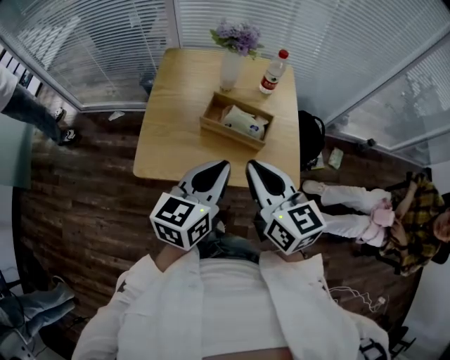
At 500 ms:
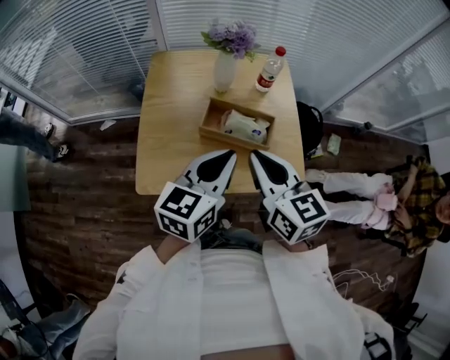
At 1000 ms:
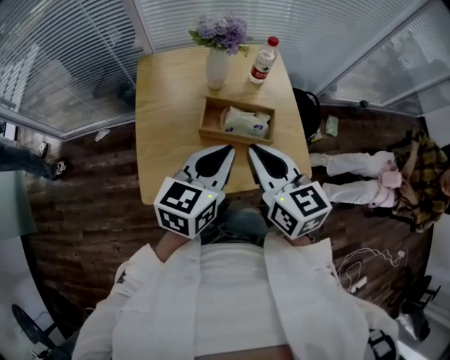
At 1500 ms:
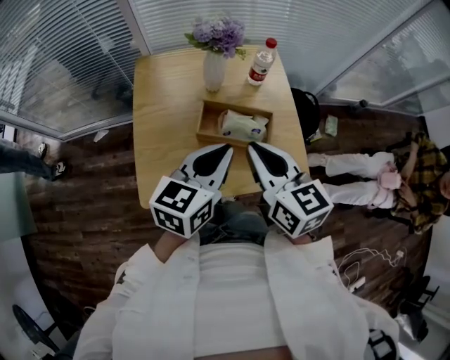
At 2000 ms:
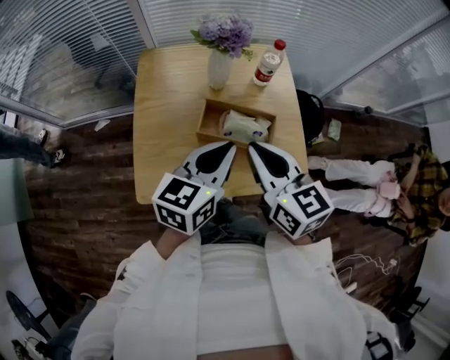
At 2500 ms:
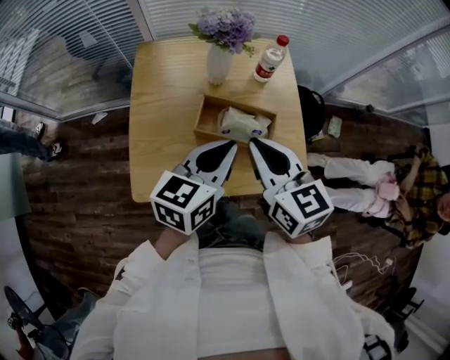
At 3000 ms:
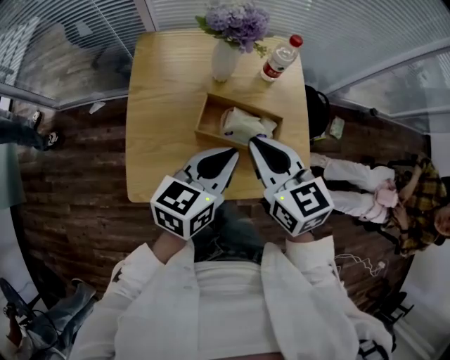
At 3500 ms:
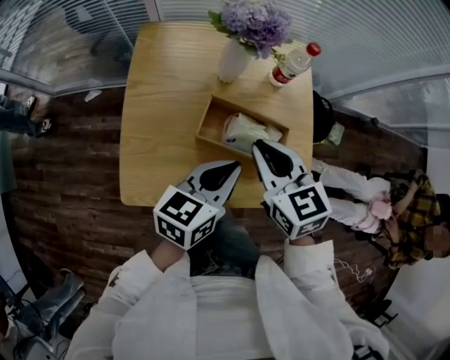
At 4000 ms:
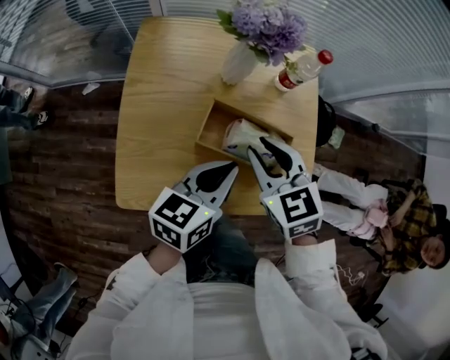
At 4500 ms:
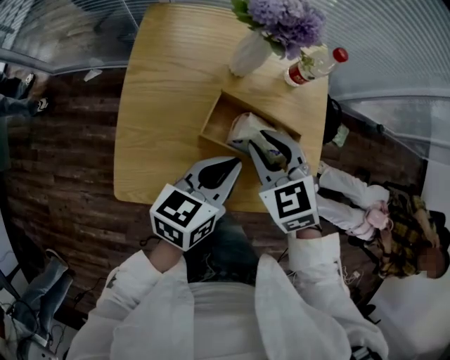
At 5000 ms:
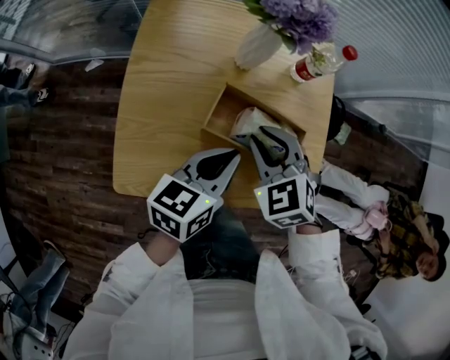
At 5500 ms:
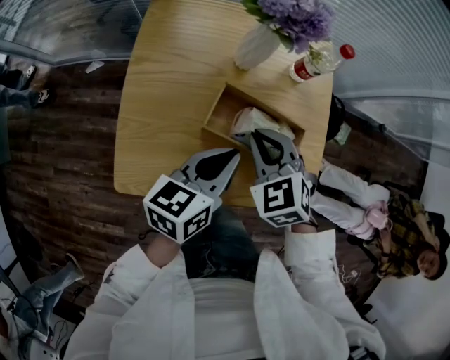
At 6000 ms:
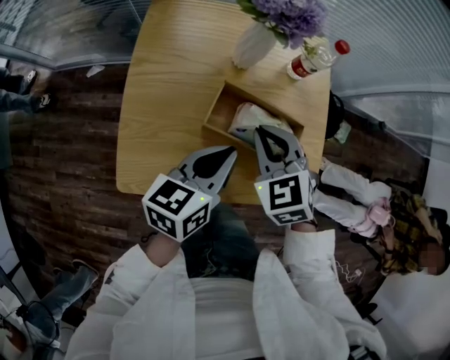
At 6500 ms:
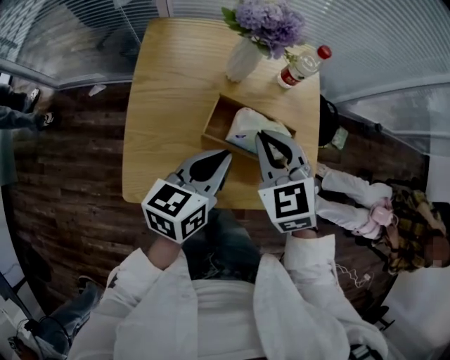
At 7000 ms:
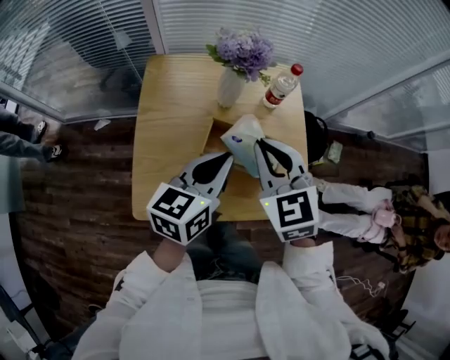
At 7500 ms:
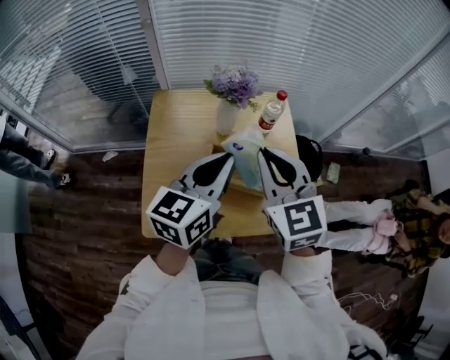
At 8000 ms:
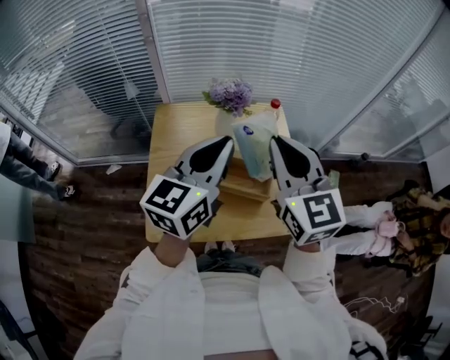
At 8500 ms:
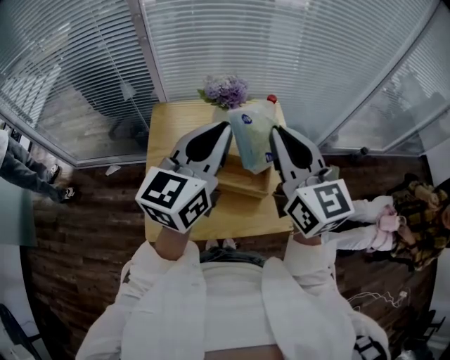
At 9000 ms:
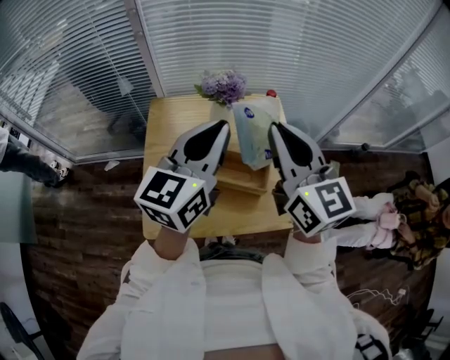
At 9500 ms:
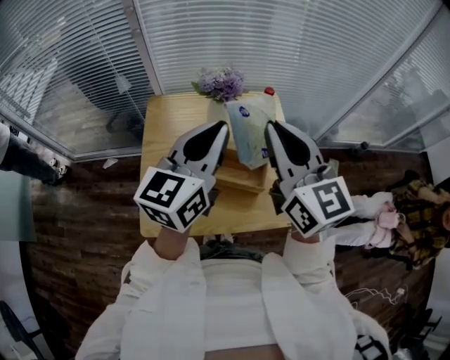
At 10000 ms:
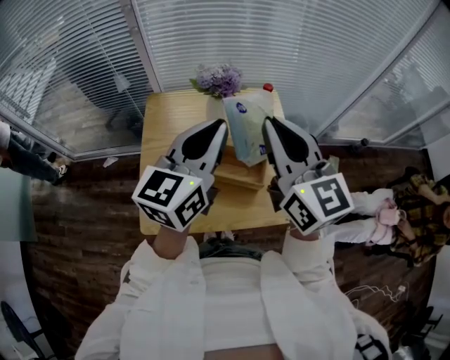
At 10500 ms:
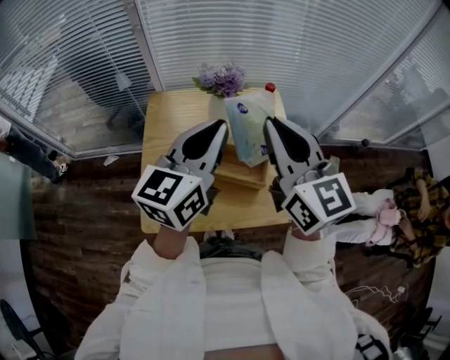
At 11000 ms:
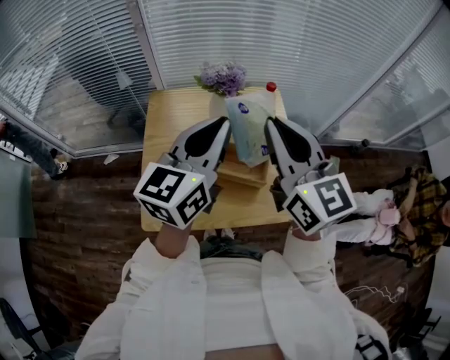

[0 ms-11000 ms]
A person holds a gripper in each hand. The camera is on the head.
0 ms to 2000 ms: The grippers both shift forward by some 10 cm.
2000 ms to 3500 ms: The left gripper travels downward by roughly 5 cm; the right gripper goes roughly 10 cm downward and forward.
3500 ms to 5500 ms: The right gripper goes some 5 cm downward, and swivels approximately 30 degrees.
5500 ms to 7500 ms: The grippers both shift upward by roughly 20 cm. The right gripper angles its fingers upward, by approximately 30 degrees. The left gripper swivels about 20 degrees.
7500 ms to 9000 ms: Both grippers travel together upward, some 10 cm. The right gripper rotates some 20 degrees.
9000 ms to 11000 ms: The grippers stay close to where they were, moving slightly.

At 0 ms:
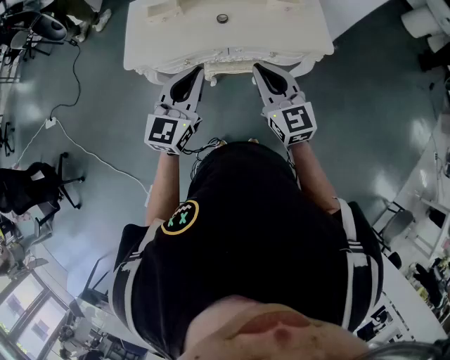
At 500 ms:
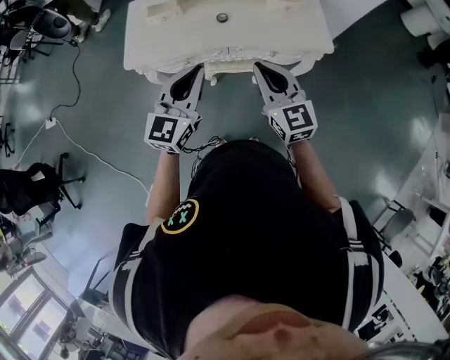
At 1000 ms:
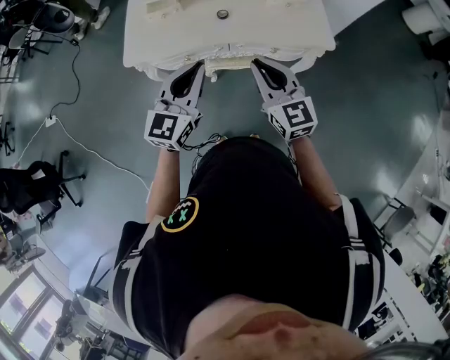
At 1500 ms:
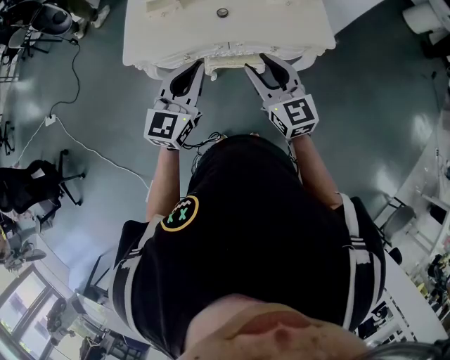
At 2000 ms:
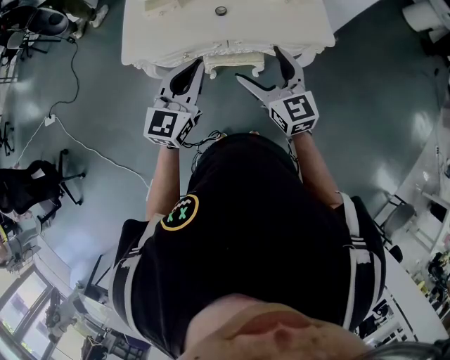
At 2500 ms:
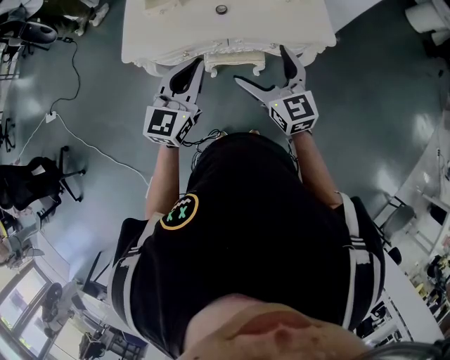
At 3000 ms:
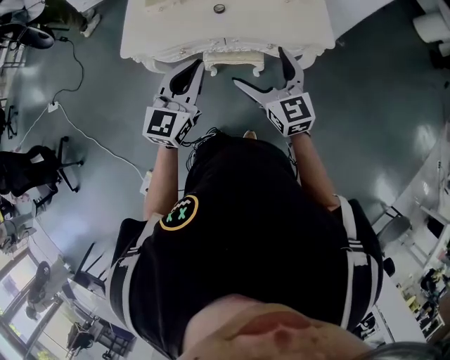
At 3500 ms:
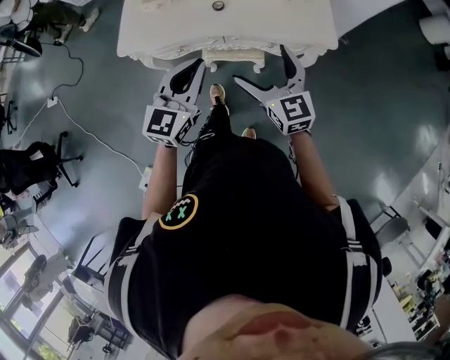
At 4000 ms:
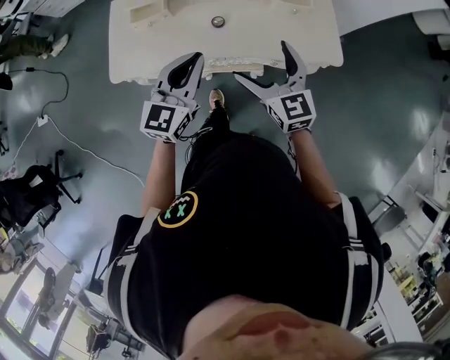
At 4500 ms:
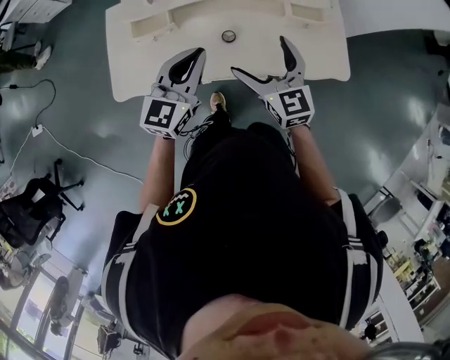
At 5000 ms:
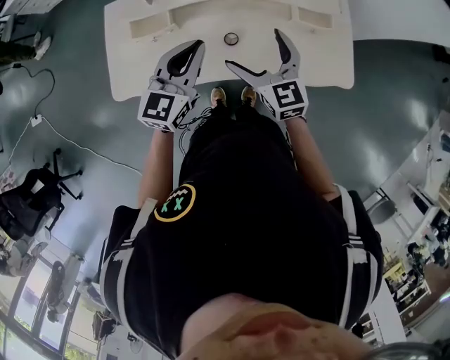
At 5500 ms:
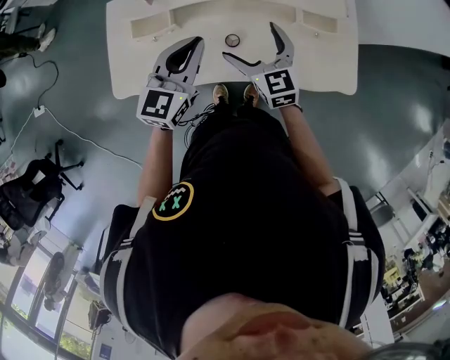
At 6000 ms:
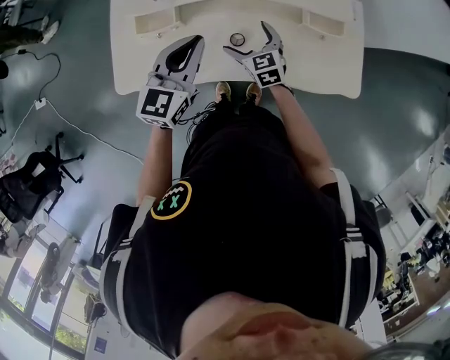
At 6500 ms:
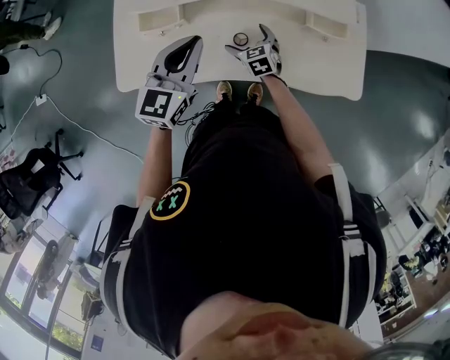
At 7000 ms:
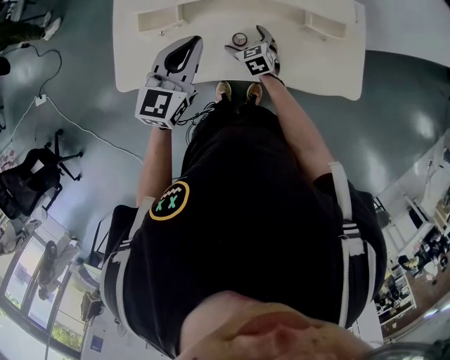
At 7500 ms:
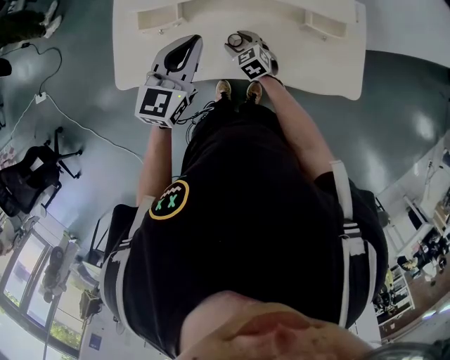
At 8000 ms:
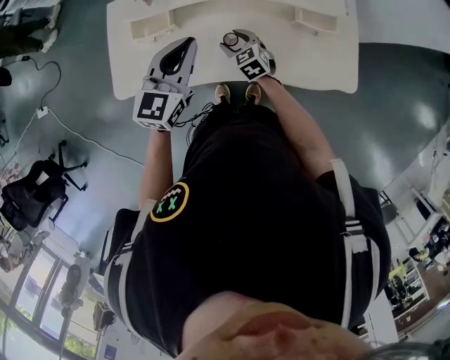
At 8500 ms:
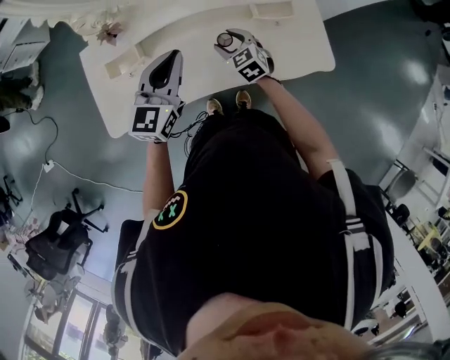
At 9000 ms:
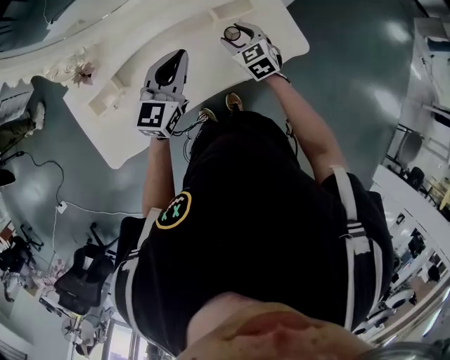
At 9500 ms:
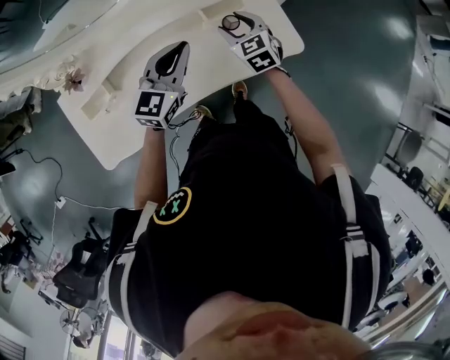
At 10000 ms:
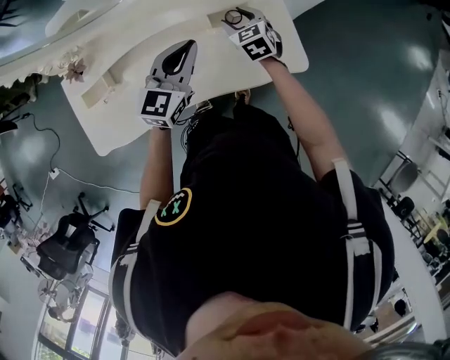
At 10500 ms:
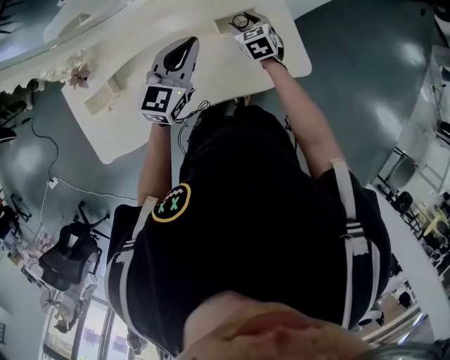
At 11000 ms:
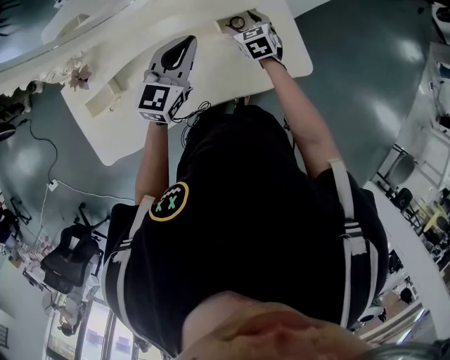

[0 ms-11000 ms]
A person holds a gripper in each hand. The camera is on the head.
0 ms to 2000 ms: The right gripper opens up.
2000 ms to 3500 ms: There are only small adjustments of the grippers.
3500 ms to 5500 ms: The two grippers go some 30 cm forward.
5500 ms to 7500 ms: The right gripper heads downward, covering about 20 cm, changes its angle by some 30 degrees, and closes its fingers.
7500 ms to 9000 ms: The right gripper changes place by approximately 25 cm, and swivels roughly 30 degrees, while the left gripper shifts by some 15 cm, and changes its angle by roughly 20 degrees.
9000 ms to 11000 ms: The grippers both shift forward by approximately 10 cm.

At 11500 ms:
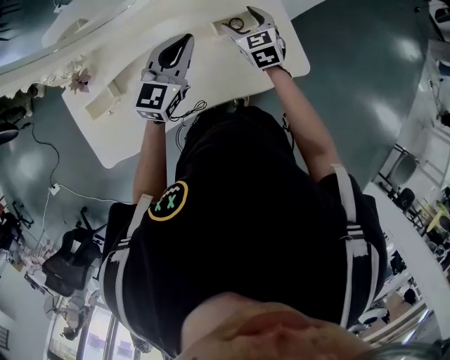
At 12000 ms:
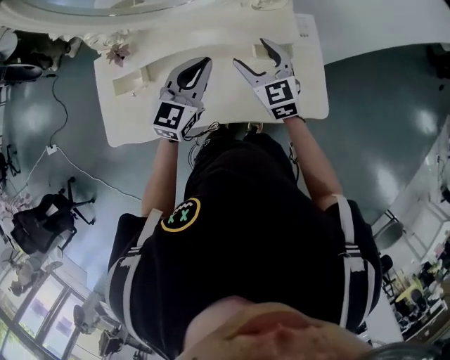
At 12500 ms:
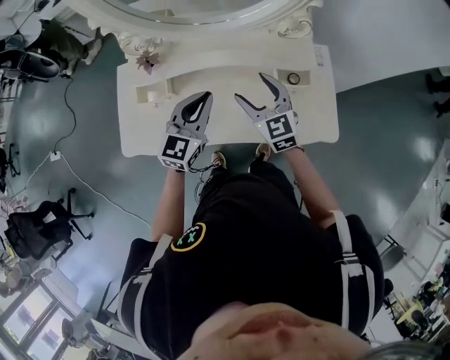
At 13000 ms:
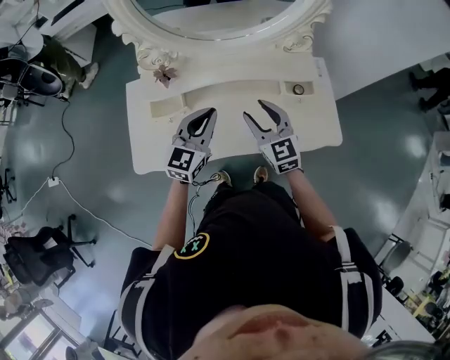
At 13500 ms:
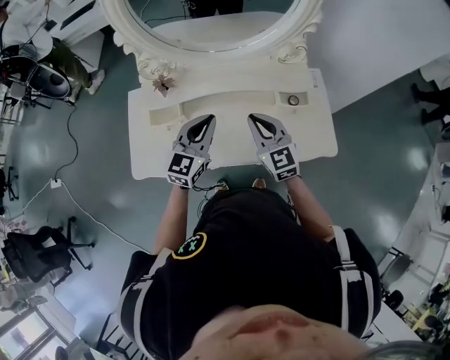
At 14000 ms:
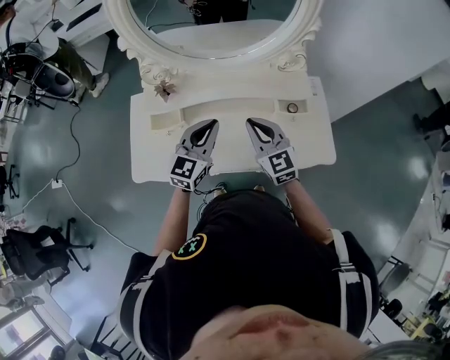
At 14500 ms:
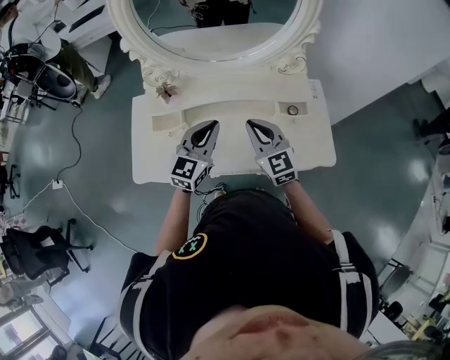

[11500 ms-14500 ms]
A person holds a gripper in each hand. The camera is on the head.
11500 ms to 13000 ms: The left gripper goes roughly 25 cm to the left and backward; the right gripper travels to the left, backward and upward by about 30 cm, and rotates about 20 degrees.
13000 ms to 14500 ms: The right gripper closes up.

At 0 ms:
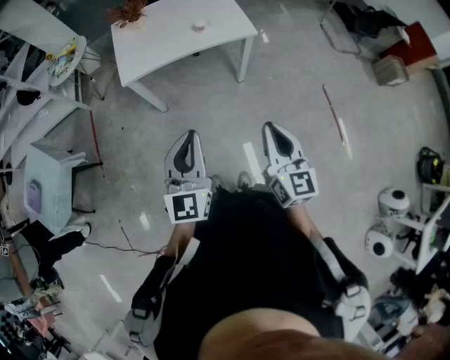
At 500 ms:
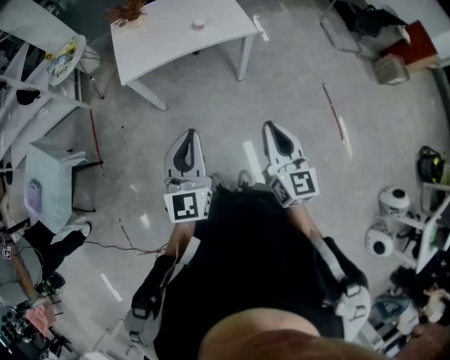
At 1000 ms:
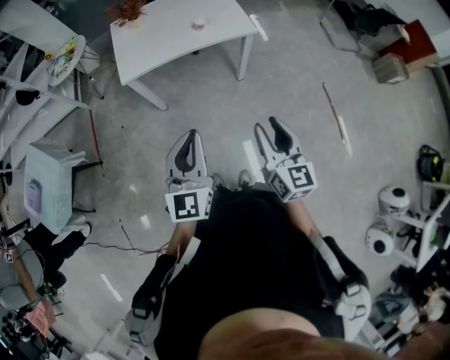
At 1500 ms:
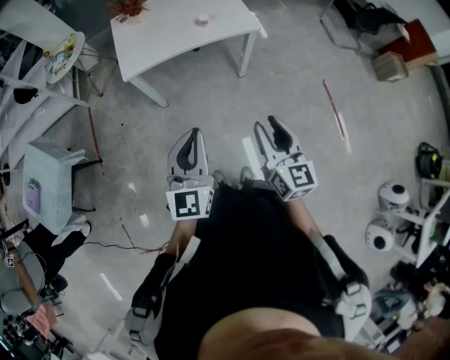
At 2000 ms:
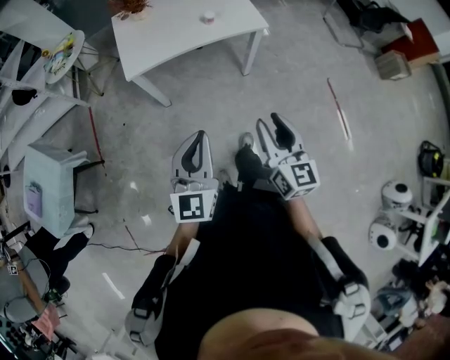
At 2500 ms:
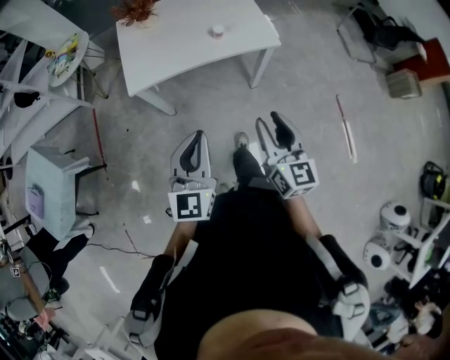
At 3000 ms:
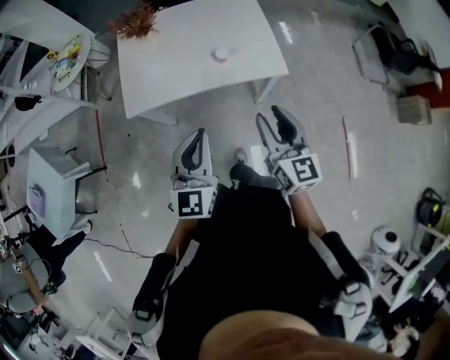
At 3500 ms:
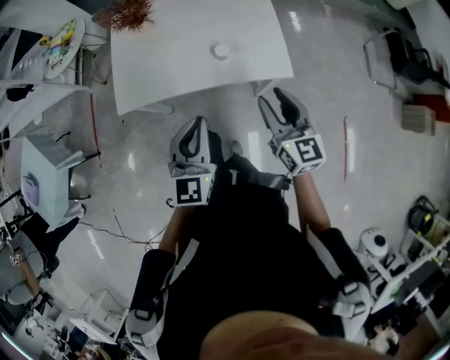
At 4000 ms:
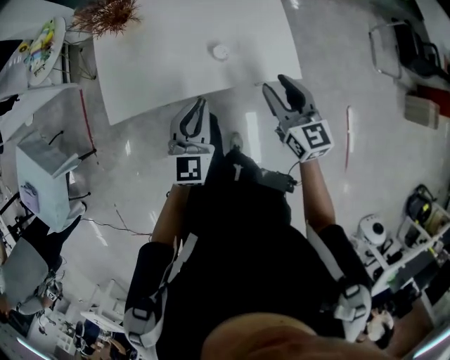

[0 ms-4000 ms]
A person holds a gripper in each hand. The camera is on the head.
0 ms to 2000 ms: The right gripper goes roughly 5 cm to the left, and opens its fingers. The left gripper moves roughly 5 cm.
2000 ms to 4000 ms: The pair of grippers is taken forward, some 50 cm. The right gripper rotates roughly 20 degrees.
